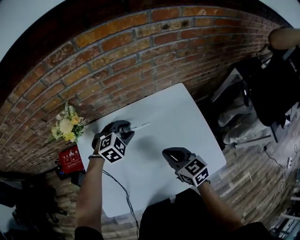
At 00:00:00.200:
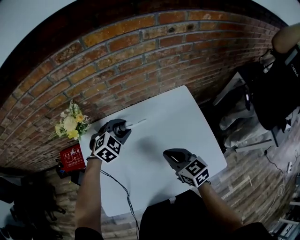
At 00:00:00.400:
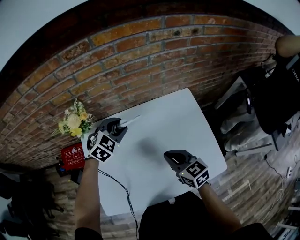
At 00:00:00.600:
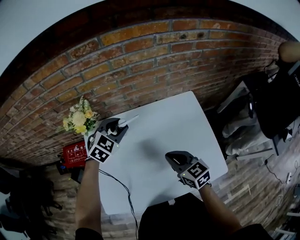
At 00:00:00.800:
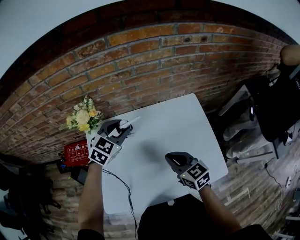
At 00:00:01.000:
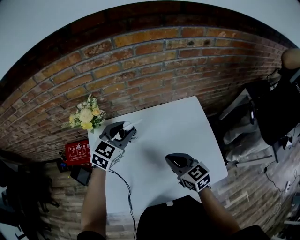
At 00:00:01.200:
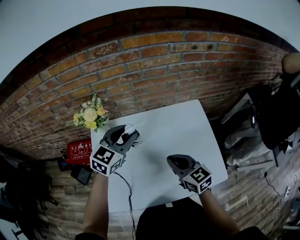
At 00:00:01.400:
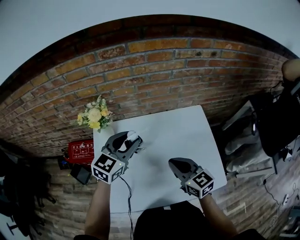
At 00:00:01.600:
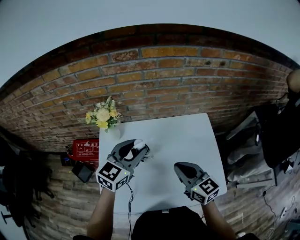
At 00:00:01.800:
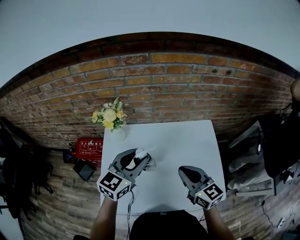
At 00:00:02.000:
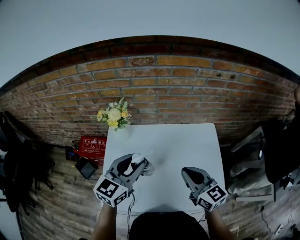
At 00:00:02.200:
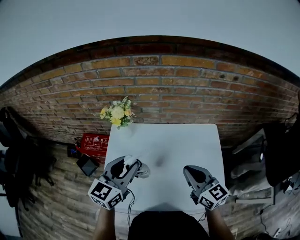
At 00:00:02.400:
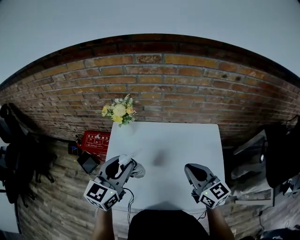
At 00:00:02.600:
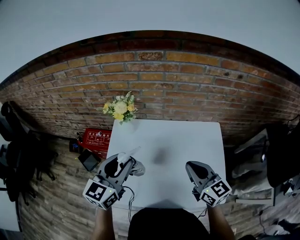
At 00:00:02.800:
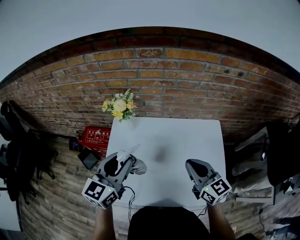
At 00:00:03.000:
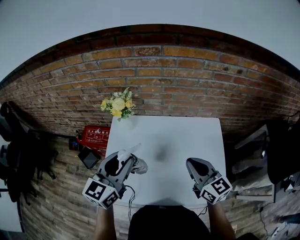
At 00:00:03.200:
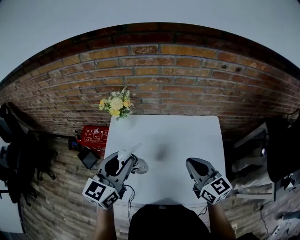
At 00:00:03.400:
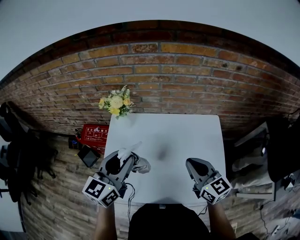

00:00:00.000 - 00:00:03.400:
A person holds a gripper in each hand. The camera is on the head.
00:00:00.000 - 00:00:01.600: The right gripper moves upward, some 10 cm; the left gripper shifts approximately 20 cm upward, backward and to the left, and angles its fingers upward, by roughly 40 degrees.
00:00:01.600 - 00:00:03.400: The left gripper heads to the left and backward, covering some 10 cm, and turns by approximately 20 degrees.

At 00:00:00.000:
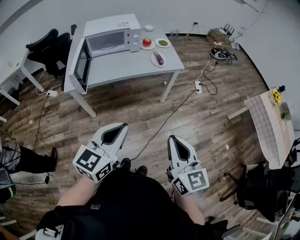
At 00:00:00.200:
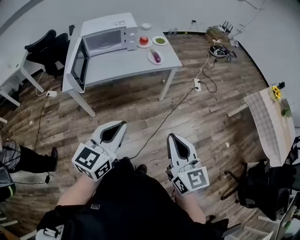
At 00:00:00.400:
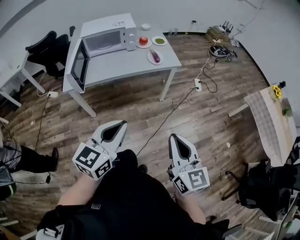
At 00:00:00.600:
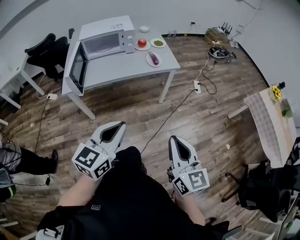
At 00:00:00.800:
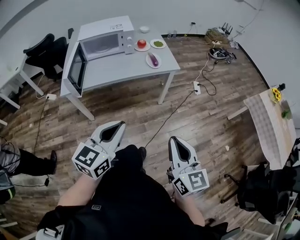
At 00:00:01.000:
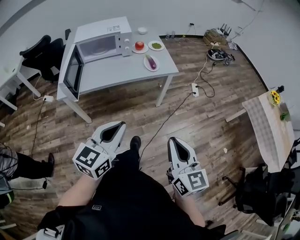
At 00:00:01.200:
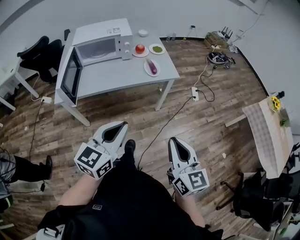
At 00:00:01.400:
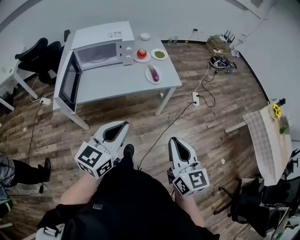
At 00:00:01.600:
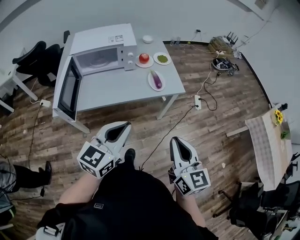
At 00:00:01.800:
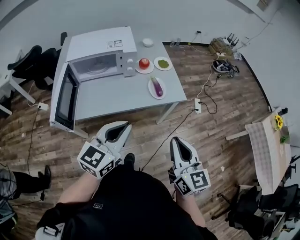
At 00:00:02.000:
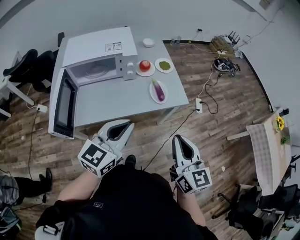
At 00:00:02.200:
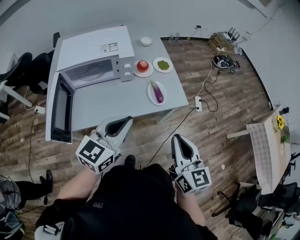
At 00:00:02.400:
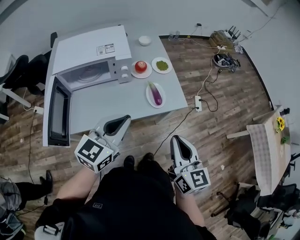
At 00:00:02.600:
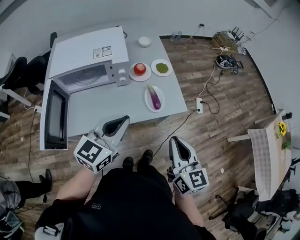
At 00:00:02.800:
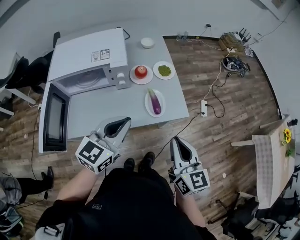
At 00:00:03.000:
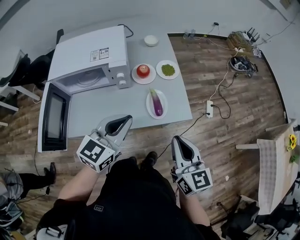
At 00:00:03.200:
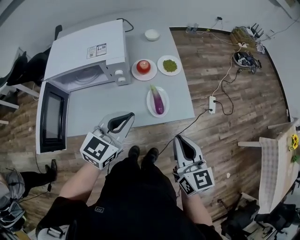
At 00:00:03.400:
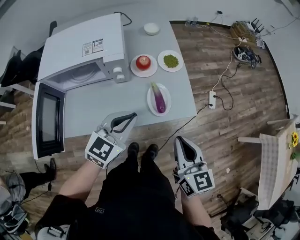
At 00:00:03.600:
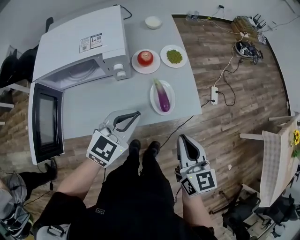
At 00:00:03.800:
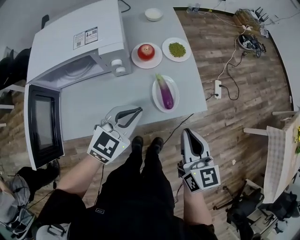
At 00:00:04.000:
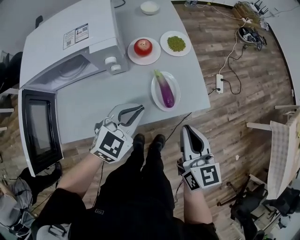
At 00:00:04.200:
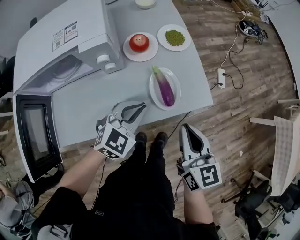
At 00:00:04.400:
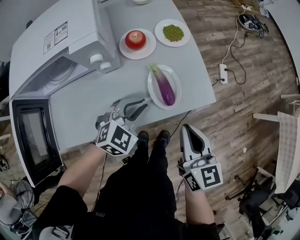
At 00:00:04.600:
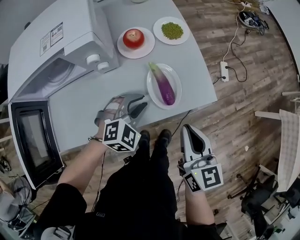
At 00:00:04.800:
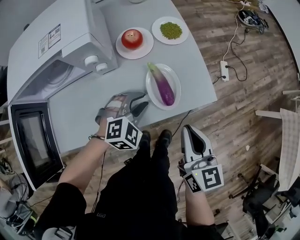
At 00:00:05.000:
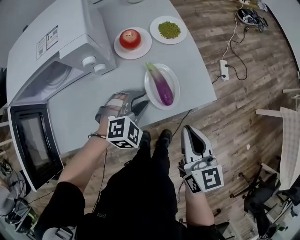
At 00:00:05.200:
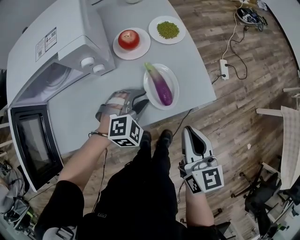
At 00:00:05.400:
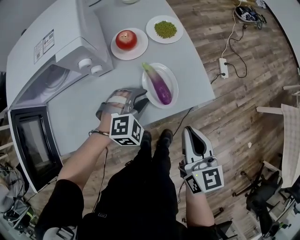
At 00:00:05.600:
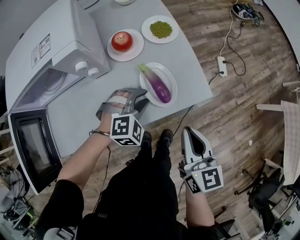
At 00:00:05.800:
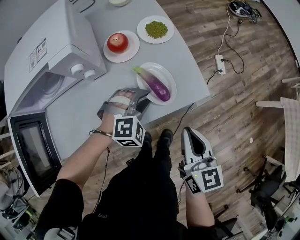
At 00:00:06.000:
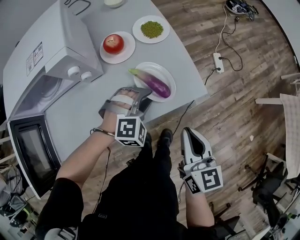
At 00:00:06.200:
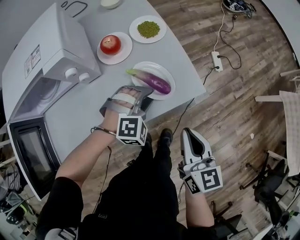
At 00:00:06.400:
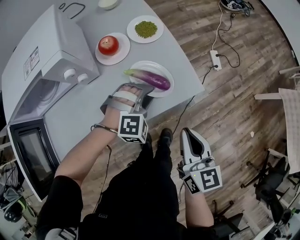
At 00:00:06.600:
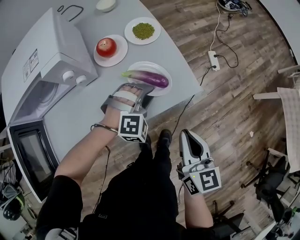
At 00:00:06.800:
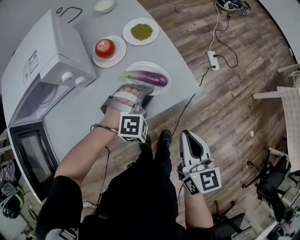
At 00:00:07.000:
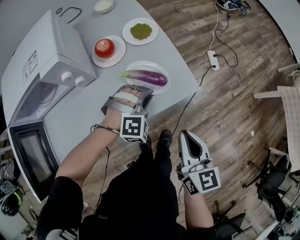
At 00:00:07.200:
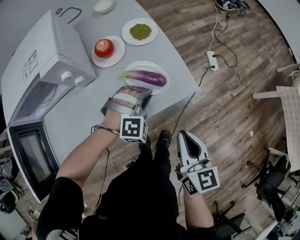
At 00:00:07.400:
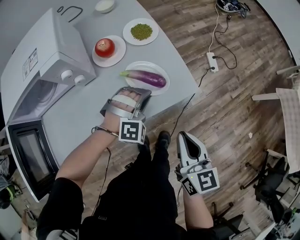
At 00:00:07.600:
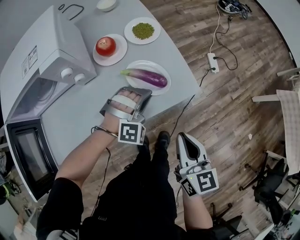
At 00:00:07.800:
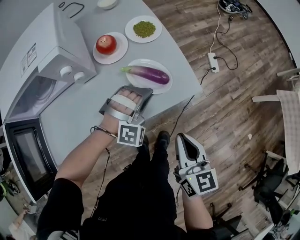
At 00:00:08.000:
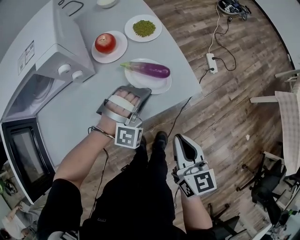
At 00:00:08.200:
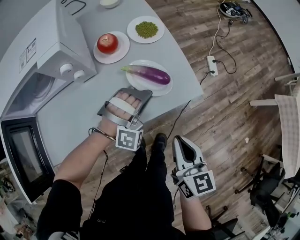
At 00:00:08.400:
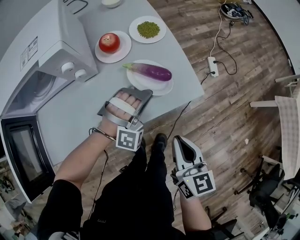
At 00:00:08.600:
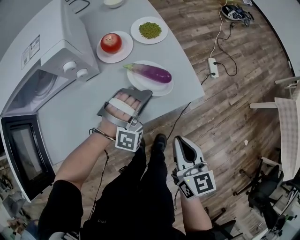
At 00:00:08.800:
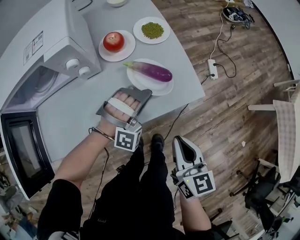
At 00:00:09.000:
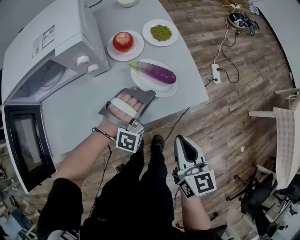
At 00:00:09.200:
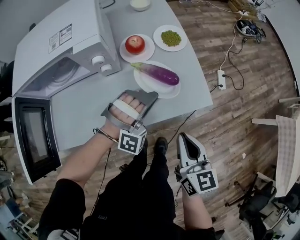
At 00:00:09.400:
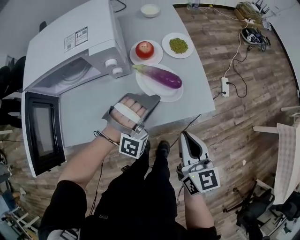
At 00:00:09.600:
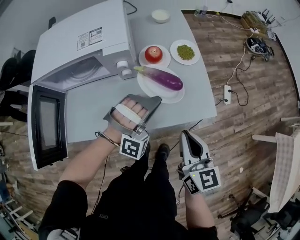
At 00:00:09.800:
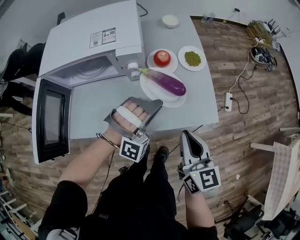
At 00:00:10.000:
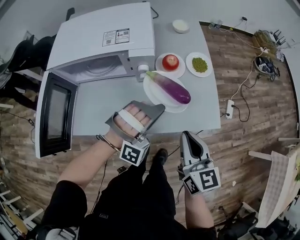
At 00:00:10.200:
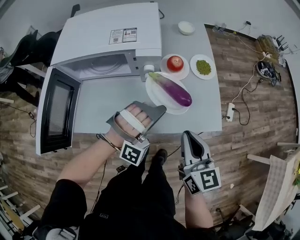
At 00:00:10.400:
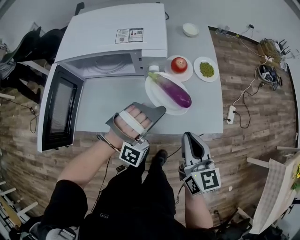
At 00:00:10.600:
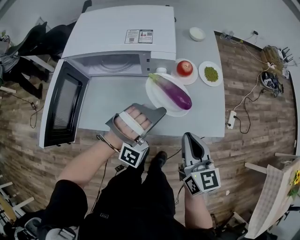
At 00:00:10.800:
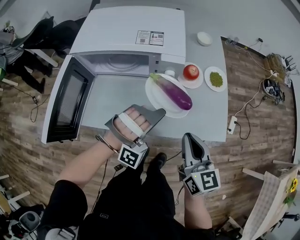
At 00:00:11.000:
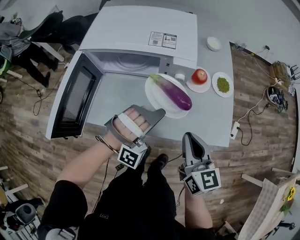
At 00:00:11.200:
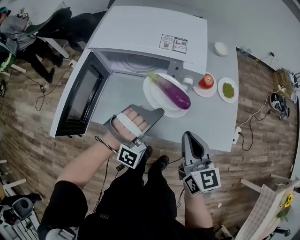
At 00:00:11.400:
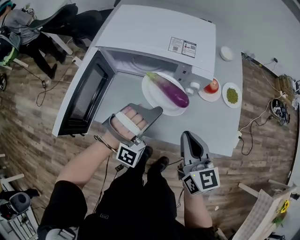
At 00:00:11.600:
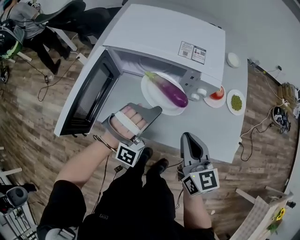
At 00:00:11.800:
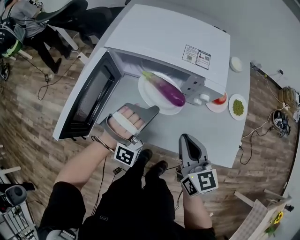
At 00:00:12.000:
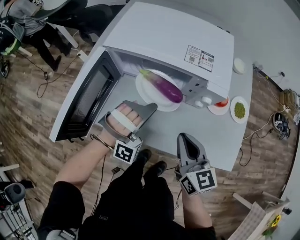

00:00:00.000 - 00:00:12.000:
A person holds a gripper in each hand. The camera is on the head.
00:00:00.000 - 00:00:01.600: Both grippers travel together forward, approximately 25 cm.
00:00:01.600 - 00:00:03.000: The two grippers go roughly 30 cm forward.
00:00:03.000 - 00:00:04.400: The right gripper heads downward and forward, covering about 20 cm, while the left gripper travels downward by approximately 25 cm, and rotates some 40 degrees.
00:00:04.400 - 00:00:06.000: The left gripper shifts about 10 cm to the right and downward, and turns by approximately 40 degrees, while the right gripper shifts by about 5 cm.
00:00:06.000 - 00:00:07.600: The left gripper closes up.
00:00:07.600 - 00:00:09.000: The left gripper changes place by some 5 cm.
00:00:09.000 - 00:00:10.400: The right gripper goes approximately 15 cm upward, to the left and forward, and swivels approximately 20 degrees, while the left gripper shifts approximately 20 cm upward and to the left.
00:00:10.400 - 00:00:12.000: The two grippers go some 20 cm to the left and forward. The right gripper turns by approximately 20 degrees, while the left gripper turns by roughly 20 degrees.

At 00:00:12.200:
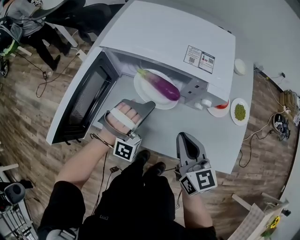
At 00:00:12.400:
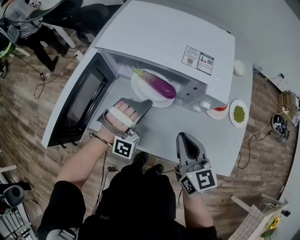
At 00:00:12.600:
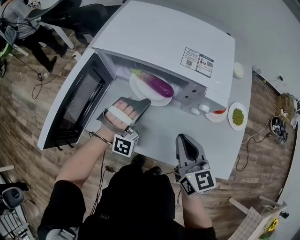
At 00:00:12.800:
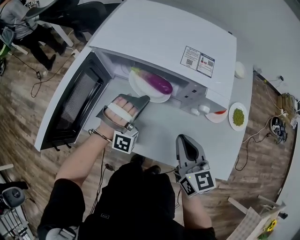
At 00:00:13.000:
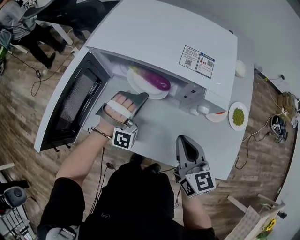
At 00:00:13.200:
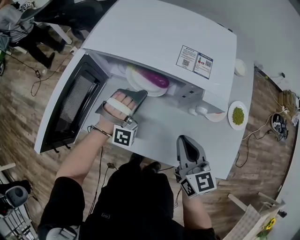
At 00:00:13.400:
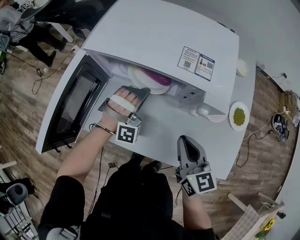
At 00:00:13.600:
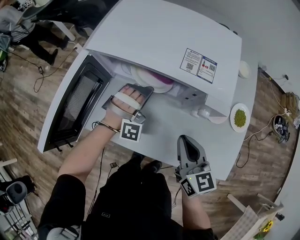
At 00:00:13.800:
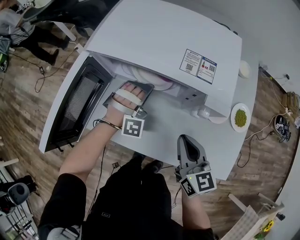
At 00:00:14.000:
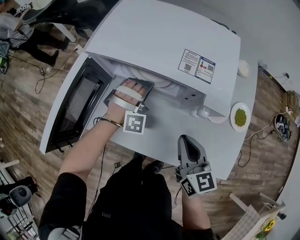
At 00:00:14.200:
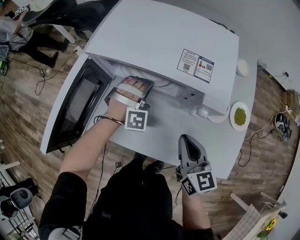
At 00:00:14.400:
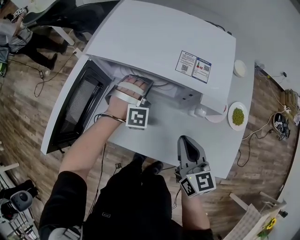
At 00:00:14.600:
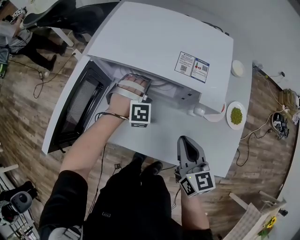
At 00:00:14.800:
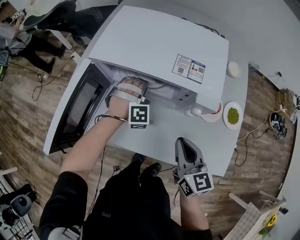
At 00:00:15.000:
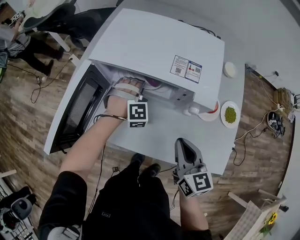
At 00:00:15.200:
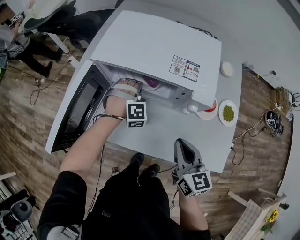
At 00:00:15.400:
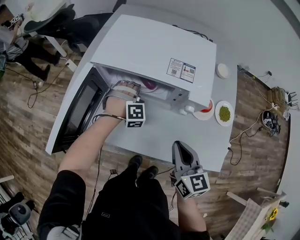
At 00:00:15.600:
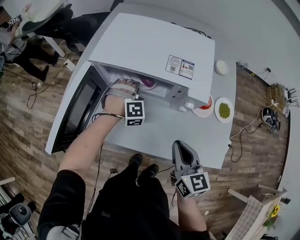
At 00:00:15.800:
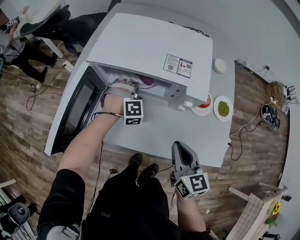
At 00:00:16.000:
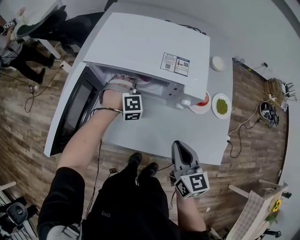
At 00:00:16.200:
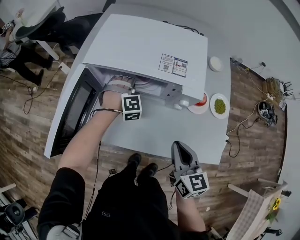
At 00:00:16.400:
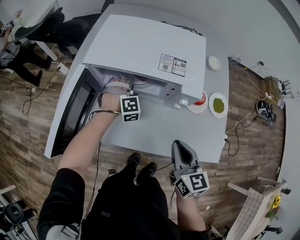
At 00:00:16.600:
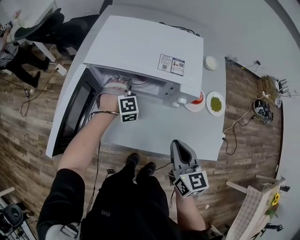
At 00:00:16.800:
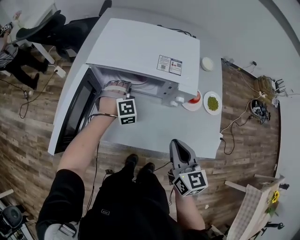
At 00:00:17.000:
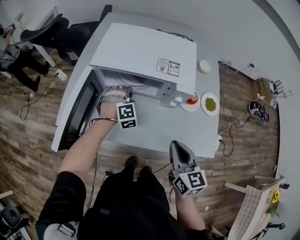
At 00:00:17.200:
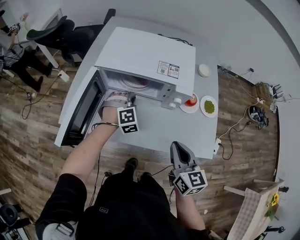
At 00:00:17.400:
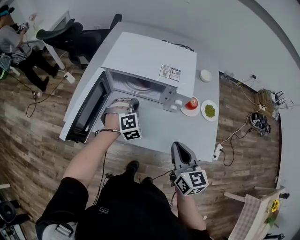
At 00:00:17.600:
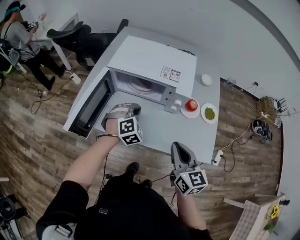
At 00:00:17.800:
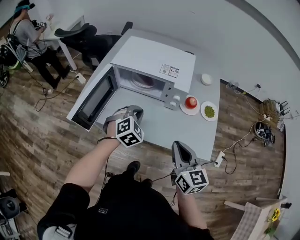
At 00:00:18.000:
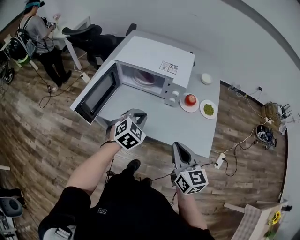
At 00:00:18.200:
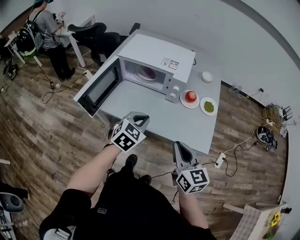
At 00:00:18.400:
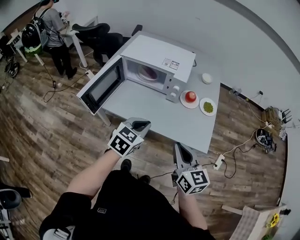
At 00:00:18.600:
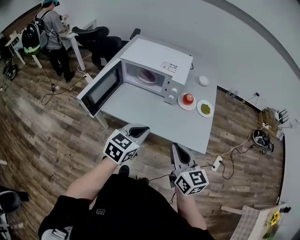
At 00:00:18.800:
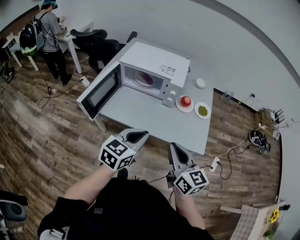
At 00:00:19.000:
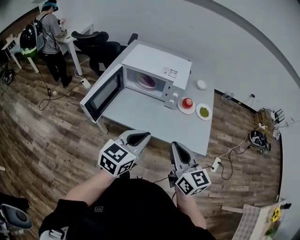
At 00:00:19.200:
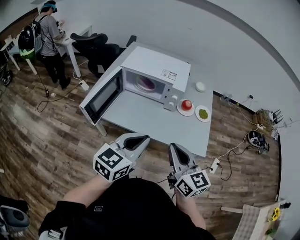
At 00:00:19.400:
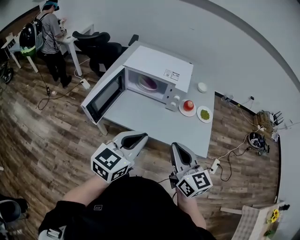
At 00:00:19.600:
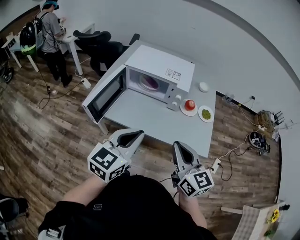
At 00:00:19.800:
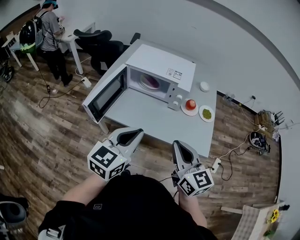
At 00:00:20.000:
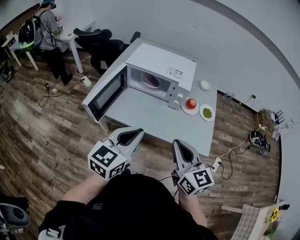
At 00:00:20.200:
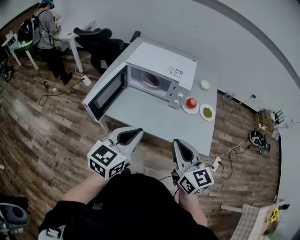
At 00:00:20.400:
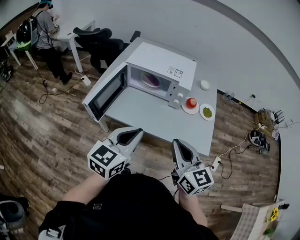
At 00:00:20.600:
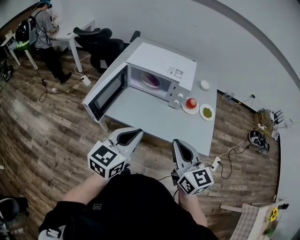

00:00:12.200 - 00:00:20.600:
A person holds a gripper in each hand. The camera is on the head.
00:00:12.200 - 00:00:13.600: The left gripper moves forward and downward, approximately 10 cm; the right gripper moves roughly 5 cm.
00:00:13.600 - 00:00:15.000: The left gripper changes its angle by roughly 30 degrees.
00:00:15.000 - 00:00:16.400: The grippers move only a little.
00:00:16.400 - 00:00:17.800: The left gripper goes approximately 25 cm backward and upward, and turns by approximately 40 degrees. Meanwhile the right gripper moves backward and upward, approximately 15 cm.
00:00:17.800 - 00:00:19.200: The right gripper is displaced backward and upward by some 15 cm, while the left gripper goes approximately 30 cm backward and upward, and angles its fingers upward, by about 30 degrees.
00:00:19.200 - 00:00:20.600: The left gripper is displaced to the left by roughly 5 cm.
